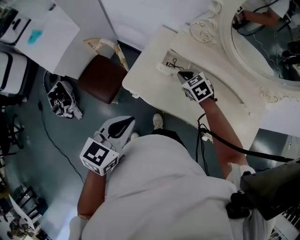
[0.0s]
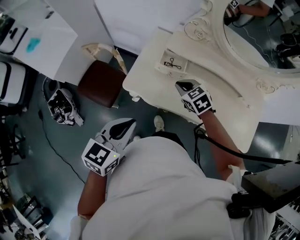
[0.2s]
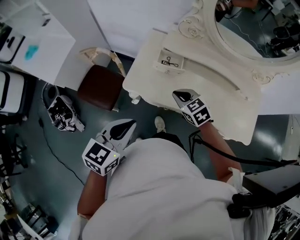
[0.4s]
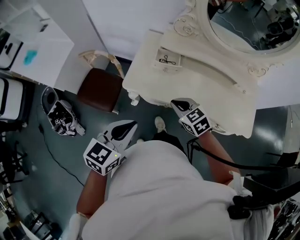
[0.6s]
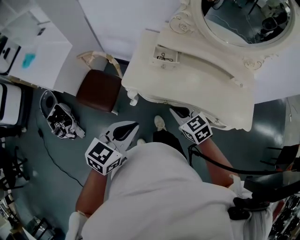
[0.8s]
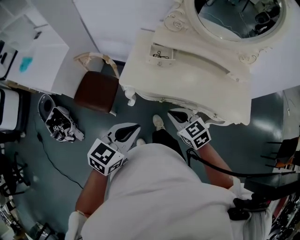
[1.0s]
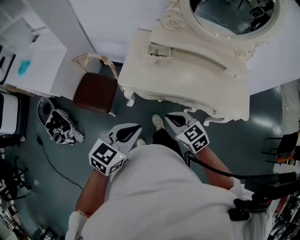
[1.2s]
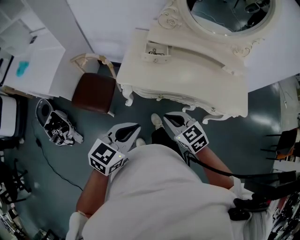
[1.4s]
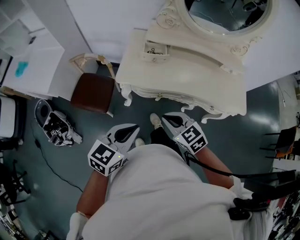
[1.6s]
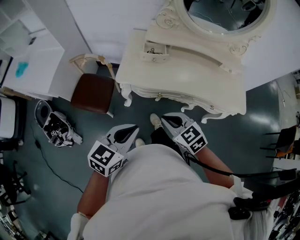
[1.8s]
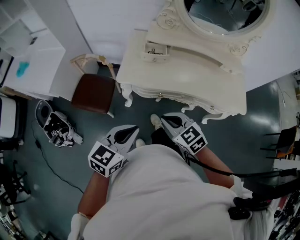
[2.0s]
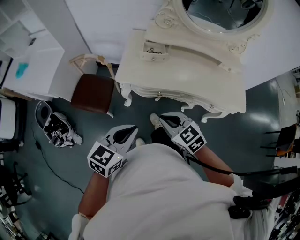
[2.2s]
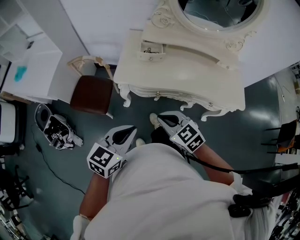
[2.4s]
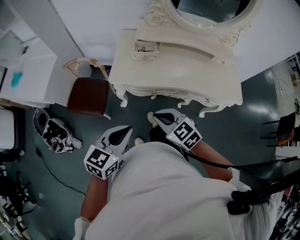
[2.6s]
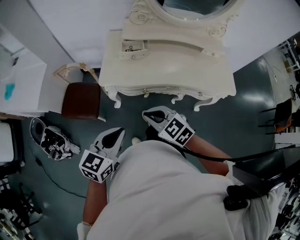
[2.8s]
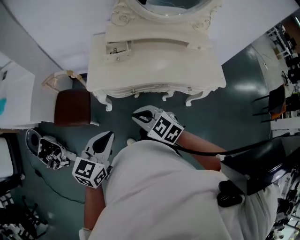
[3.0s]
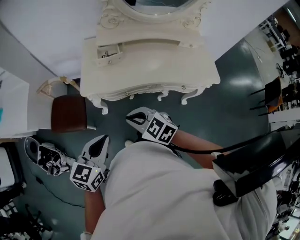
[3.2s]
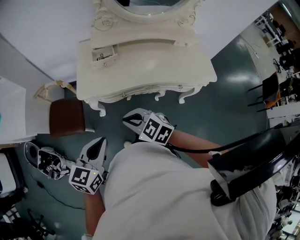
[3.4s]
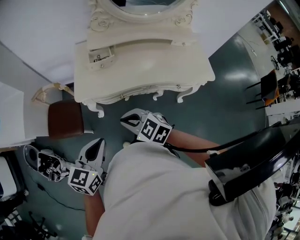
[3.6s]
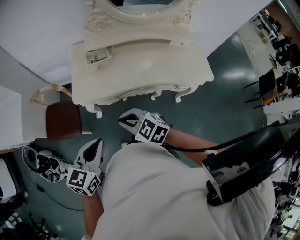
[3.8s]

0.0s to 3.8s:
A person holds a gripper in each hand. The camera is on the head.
0.0s to 1.2s: The left gripper moves backward, about 15 cm, and swivels roughly 20 degrees; the right gripper is displaced backward by approximately 35 cm, and turns by about 20 degrees.
1.2s to 2.6s: The right gripper ends up approximately 5 cm from where it was.
2.6s to 3.8s: The grippers move only a little.

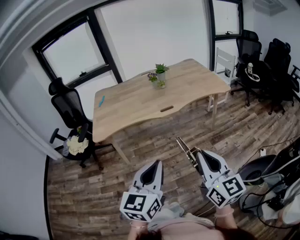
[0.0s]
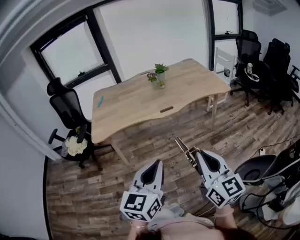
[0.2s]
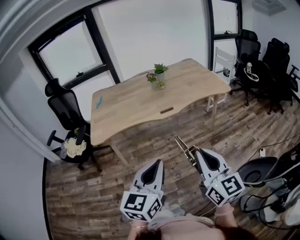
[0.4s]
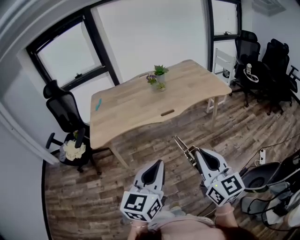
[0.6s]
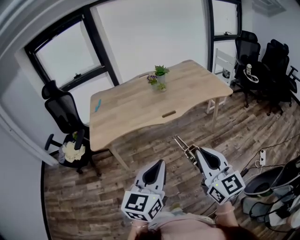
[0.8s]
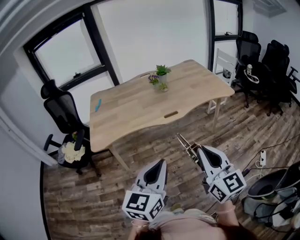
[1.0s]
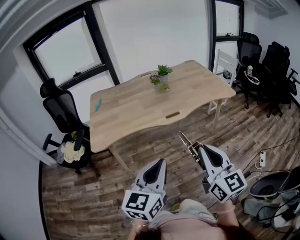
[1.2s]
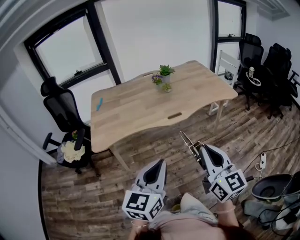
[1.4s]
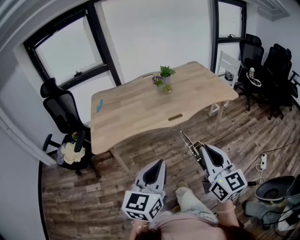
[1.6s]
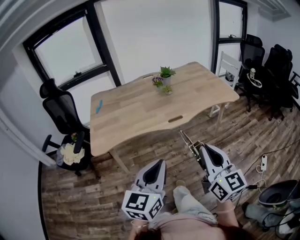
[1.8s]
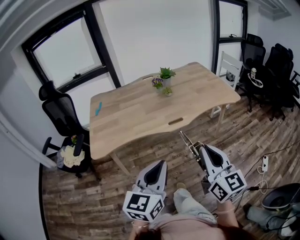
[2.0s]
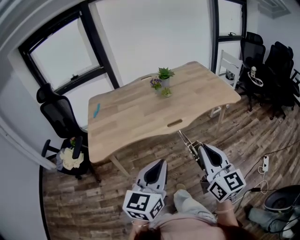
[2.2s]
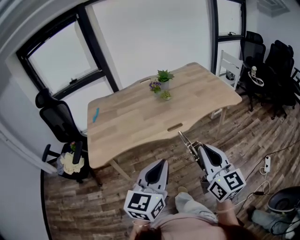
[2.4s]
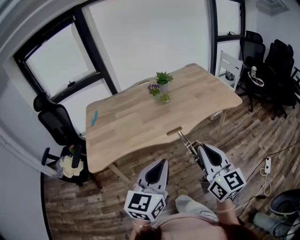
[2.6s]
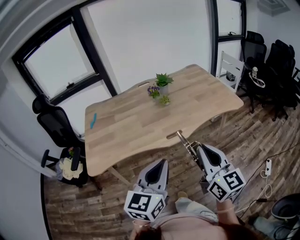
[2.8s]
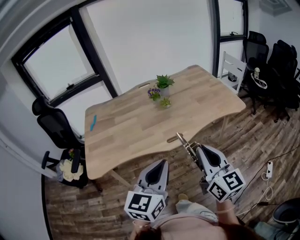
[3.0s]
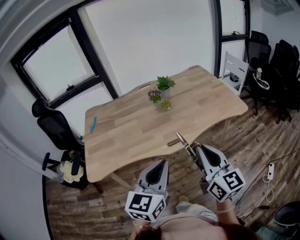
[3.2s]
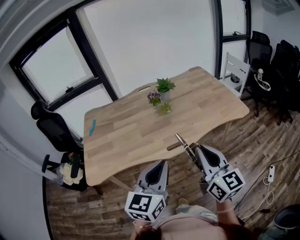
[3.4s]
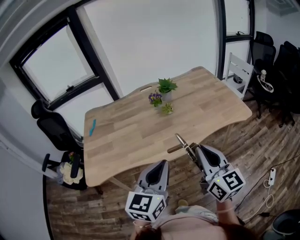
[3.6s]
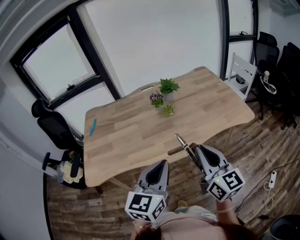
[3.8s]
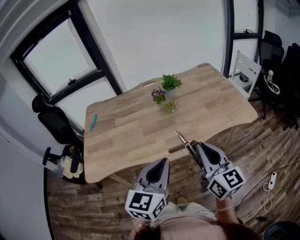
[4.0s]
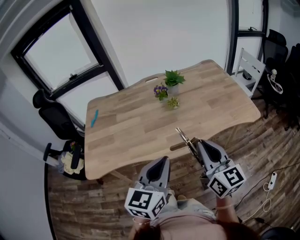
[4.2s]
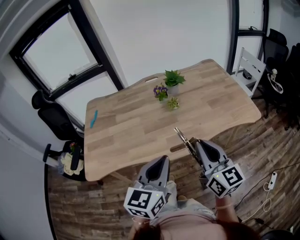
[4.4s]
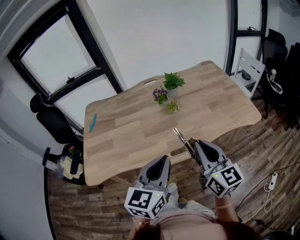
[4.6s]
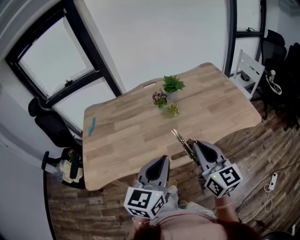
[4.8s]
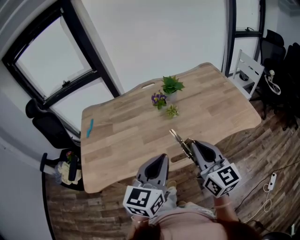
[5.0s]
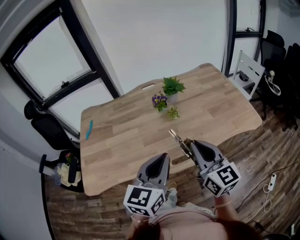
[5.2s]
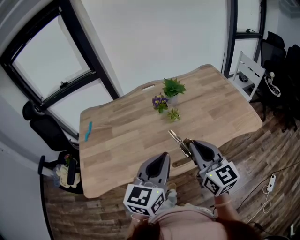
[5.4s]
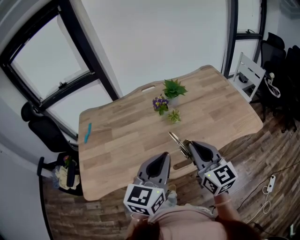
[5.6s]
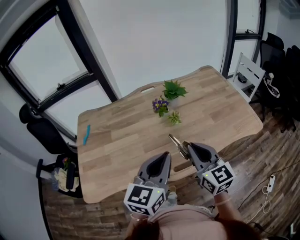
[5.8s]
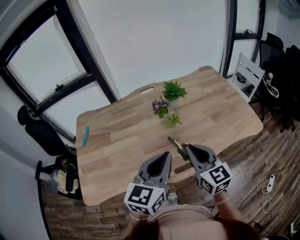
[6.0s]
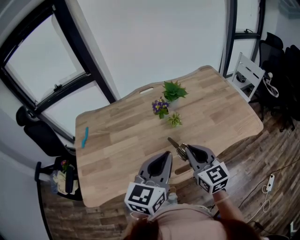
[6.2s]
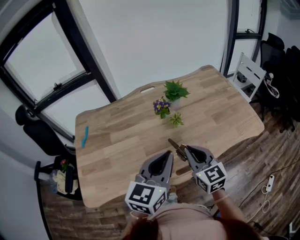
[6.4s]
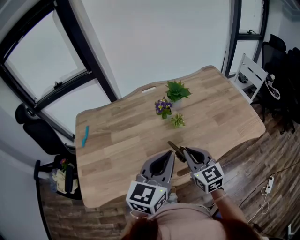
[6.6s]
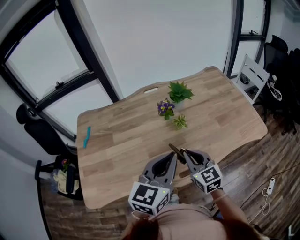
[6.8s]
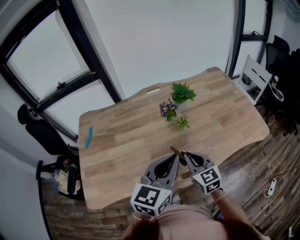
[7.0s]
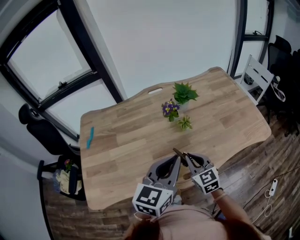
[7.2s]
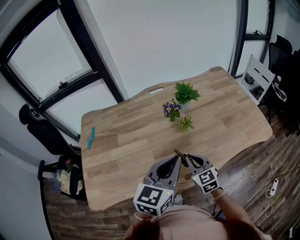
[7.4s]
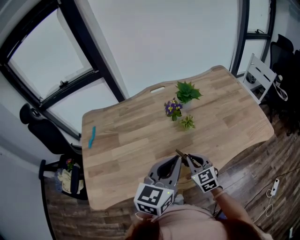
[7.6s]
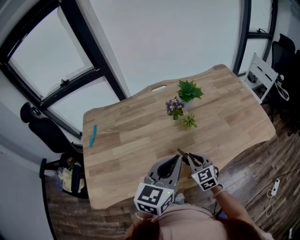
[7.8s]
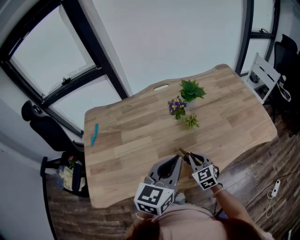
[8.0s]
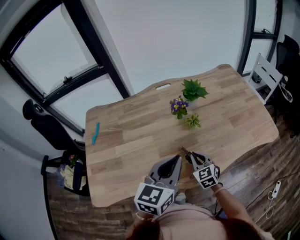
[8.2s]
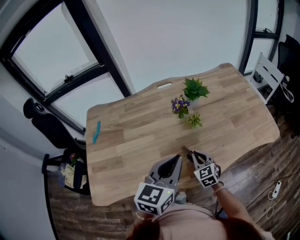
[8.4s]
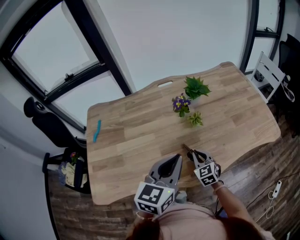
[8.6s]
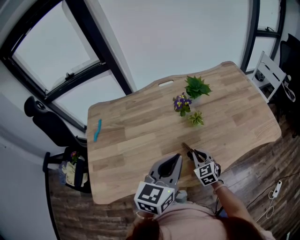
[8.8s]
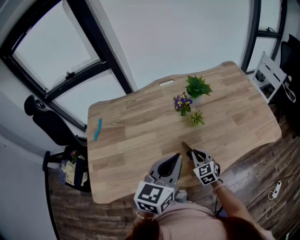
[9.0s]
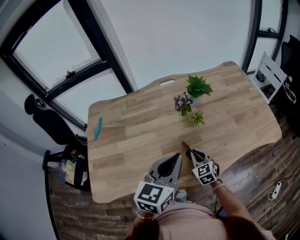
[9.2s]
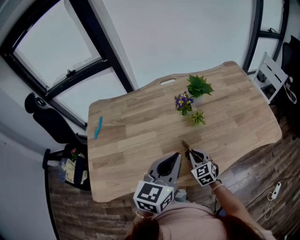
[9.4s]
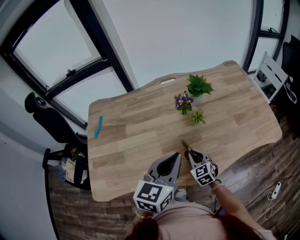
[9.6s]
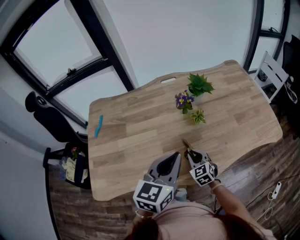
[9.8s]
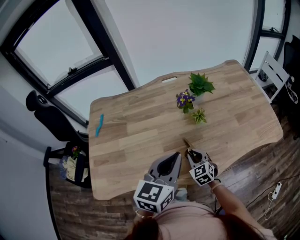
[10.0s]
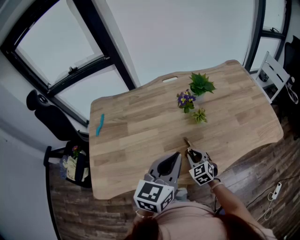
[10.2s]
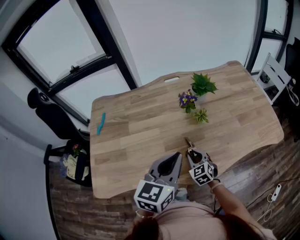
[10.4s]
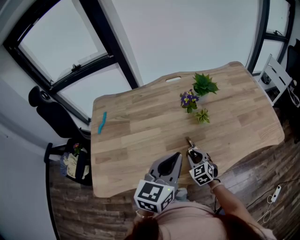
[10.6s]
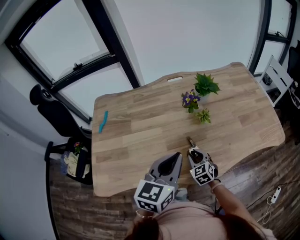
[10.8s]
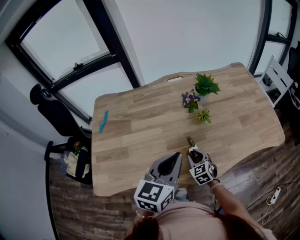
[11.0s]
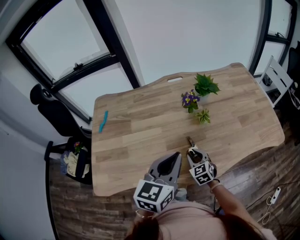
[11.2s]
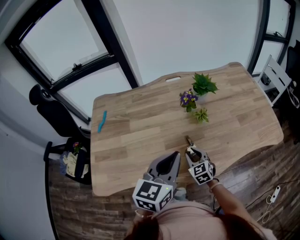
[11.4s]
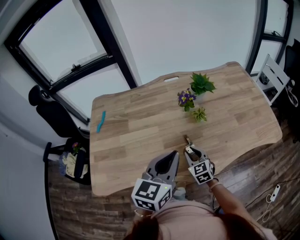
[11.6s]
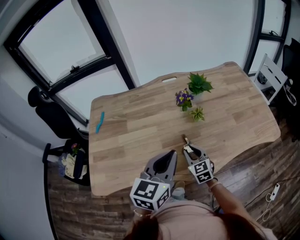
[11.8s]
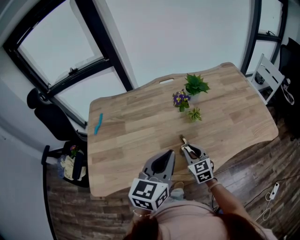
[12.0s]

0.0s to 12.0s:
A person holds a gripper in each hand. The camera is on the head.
0.0s to 1.6s: Both grippers travel together forward and to the left, roughly 15 cm.
1.6s to 3.0s: The grippers both shift forward by approximately 20 cm.
3.0s to 4.4s: Both grippers travel together forward, about 15 cm.
4.4s to 6.0s: The right gripper moves forward and to the left, about 15 cm. Meanwhile the left gripper heads forward, covering about 15 cm.
6.0s to 7.6s: The right gripper goes some 15 cm downward, and changes its angle by about 20 degrees. Meanwhile the left gripper ends up roughly 5 cm from where it was.
7.6s to 9.0s: The right gripper goes approximately 5 cm downward.
9.0s to 10.4s: The grippers move only a little.
10.4s to 12.0s: The right gripper goes about 5 cm upward.

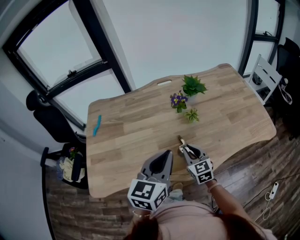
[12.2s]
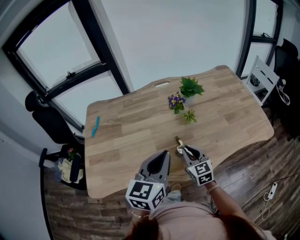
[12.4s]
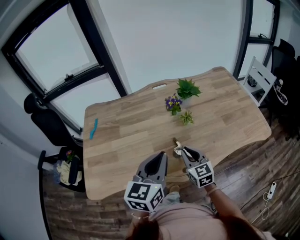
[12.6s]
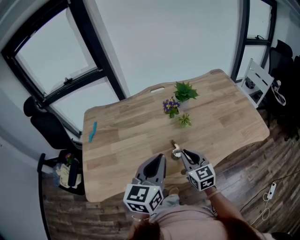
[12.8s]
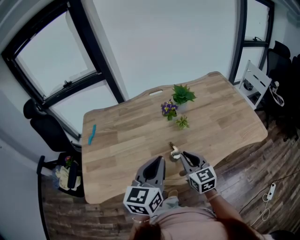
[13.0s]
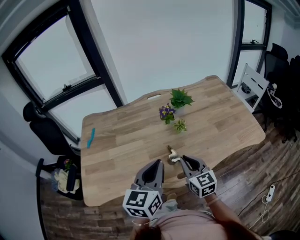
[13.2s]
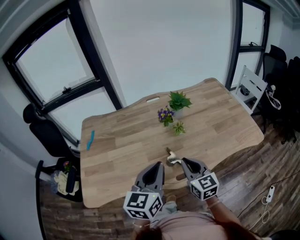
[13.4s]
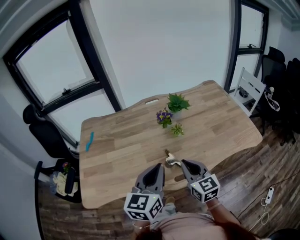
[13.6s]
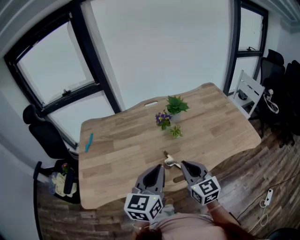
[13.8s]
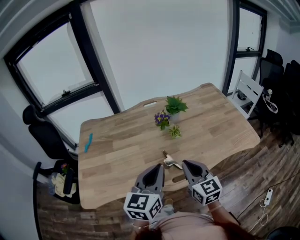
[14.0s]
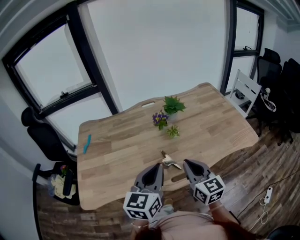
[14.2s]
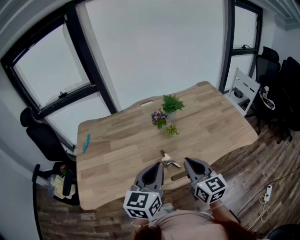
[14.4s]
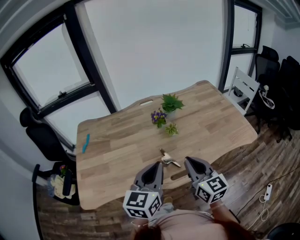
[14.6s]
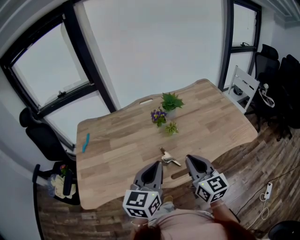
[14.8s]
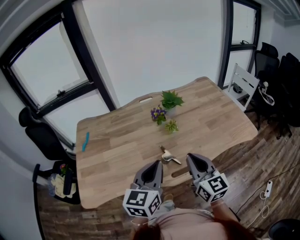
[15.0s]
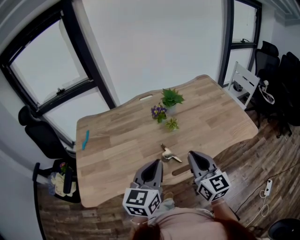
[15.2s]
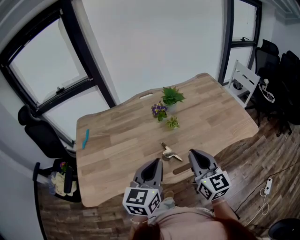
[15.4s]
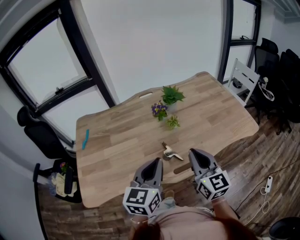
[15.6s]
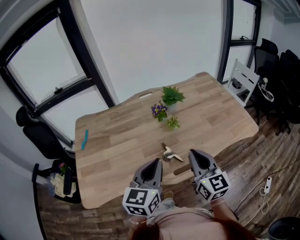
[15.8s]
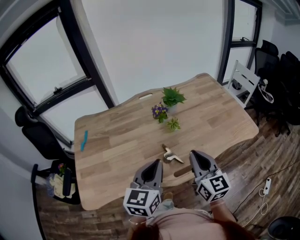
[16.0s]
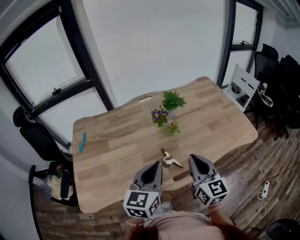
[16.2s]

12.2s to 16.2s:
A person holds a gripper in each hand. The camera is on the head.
12.2s to 13.6s: The right gripper moves upward and backward, roughly 15 cm.
13.6s to 14.8s: The right gripper travels upward by some 5 cm.
14.8s to 16.2s: The grippers make only small movements.

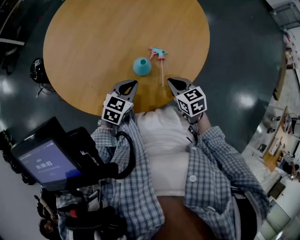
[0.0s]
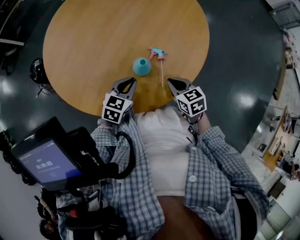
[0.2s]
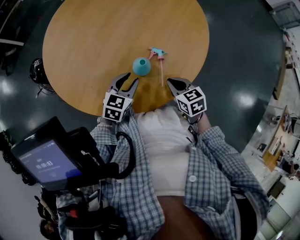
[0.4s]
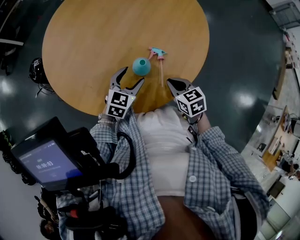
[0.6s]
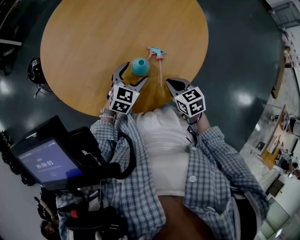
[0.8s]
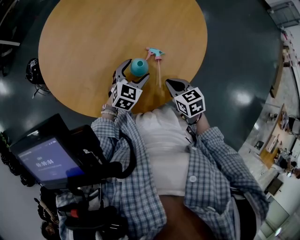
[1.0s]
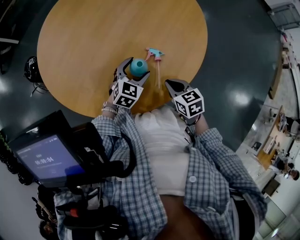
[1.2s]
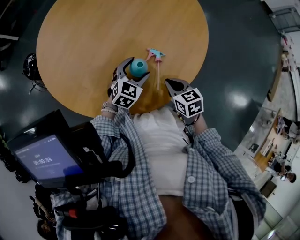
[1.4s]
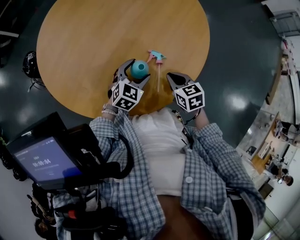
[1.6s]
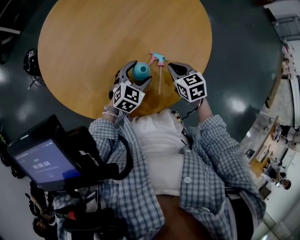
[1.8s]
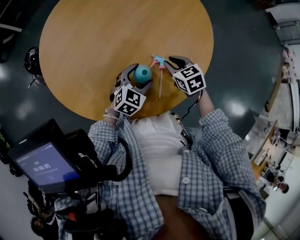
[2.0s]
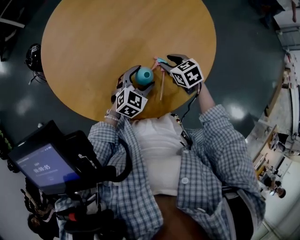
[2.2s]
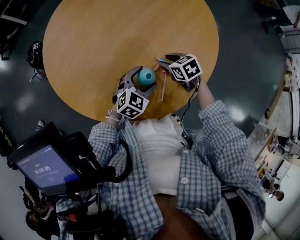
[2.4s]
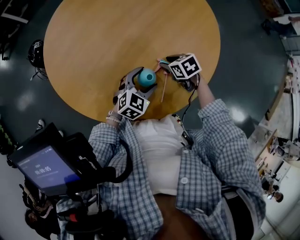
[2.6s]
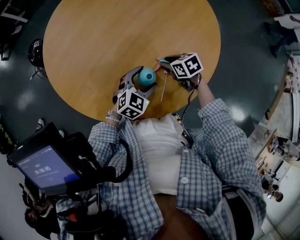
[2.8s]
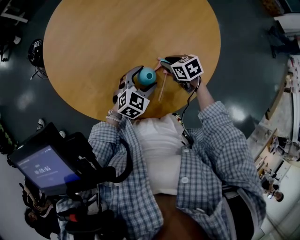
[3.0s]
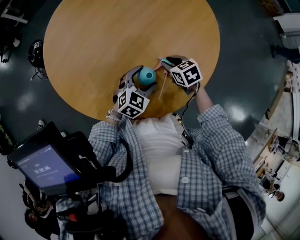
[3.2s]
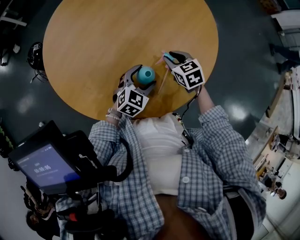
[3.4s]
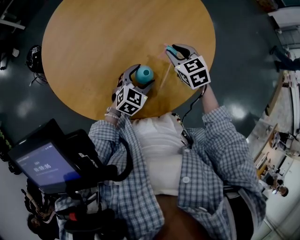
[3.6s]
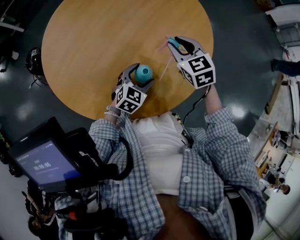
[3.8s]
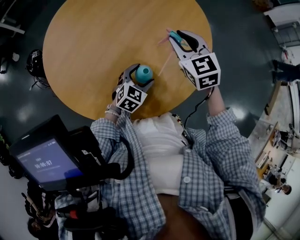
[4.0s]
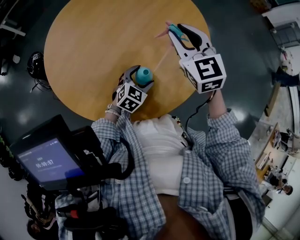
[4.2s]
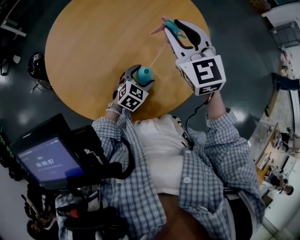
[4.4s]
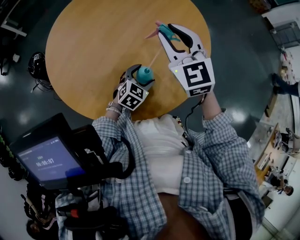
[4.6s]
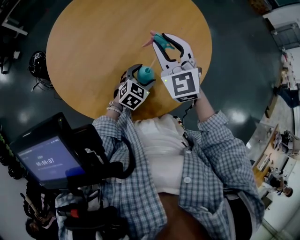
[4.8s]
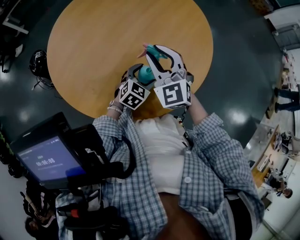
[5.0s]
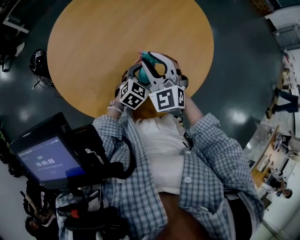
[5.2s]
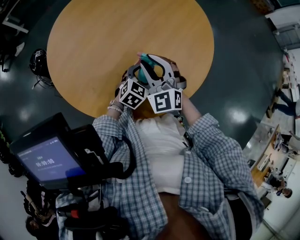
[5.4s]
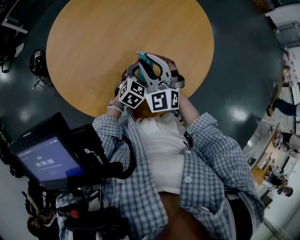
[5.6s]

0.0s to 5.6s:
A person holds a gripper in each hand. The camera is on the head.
0.0s to 1.4s: The left gripper travels forward by roughly 5 cm, and opens up.
1.4s to 2.8s: The right gripper travels forward by roughly 15 cm, changes its angle by roughly 20 degrees, and opens its fingers.
2.8s to 4.2s: The right gripper travels upward by approximately 30 cm, and tips its fingers upward by approximately 40 degrees.
4.2s to 5.6s: The right gripper shifts approximately 15 cm downward, backward and to the left, and turns by approximately 20 degrees.
